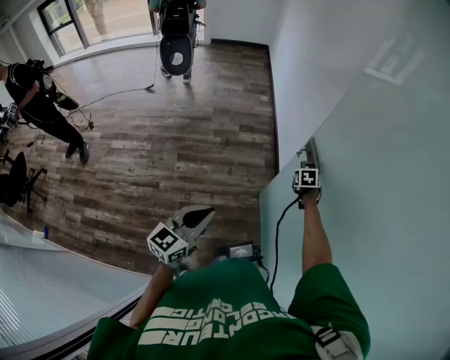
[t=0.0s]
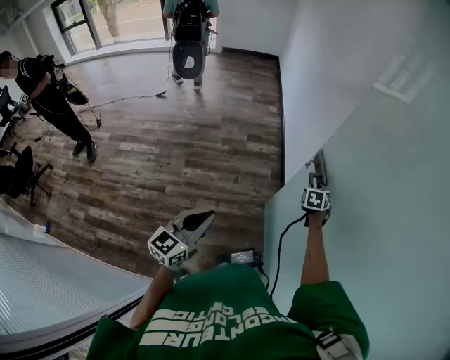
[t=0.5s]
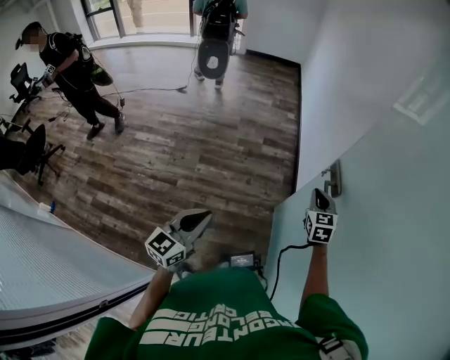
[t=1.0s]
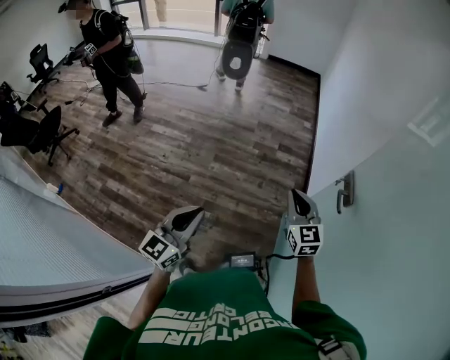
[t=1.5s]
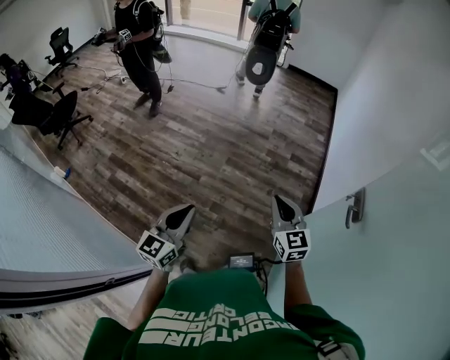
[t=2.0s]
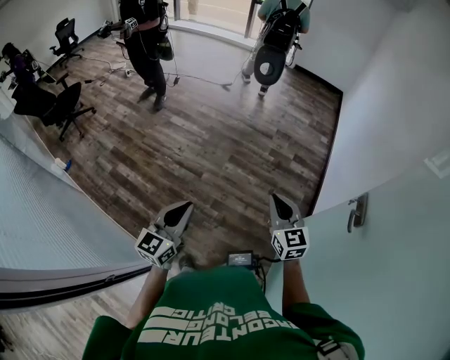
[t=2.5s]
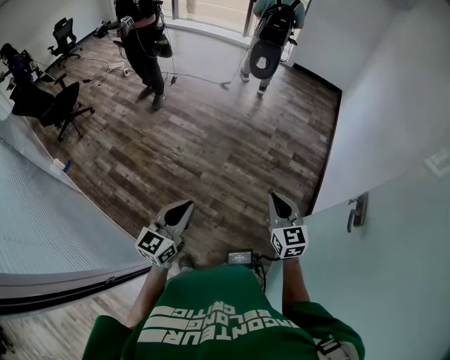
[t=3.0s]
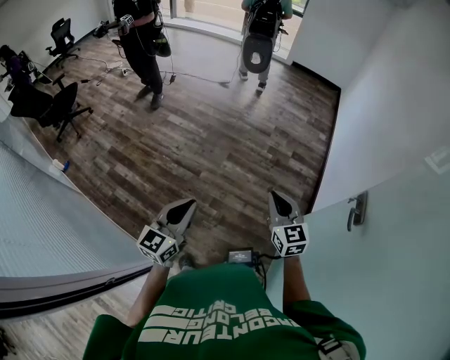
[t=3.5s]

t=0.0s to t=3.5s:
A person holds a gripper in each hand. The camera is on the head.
t=0.0s to t=2.0s: The left gripper moves approximately 25 cm, and swivels approximately 40 degrees. Meanwhile the right gripper shifts by approximately 50 cm, tips its fingers upward by approximately 40 degrees, and opens and closes again.
t=2.0s to t=3.5s: There are only small adjustments of the grippers.

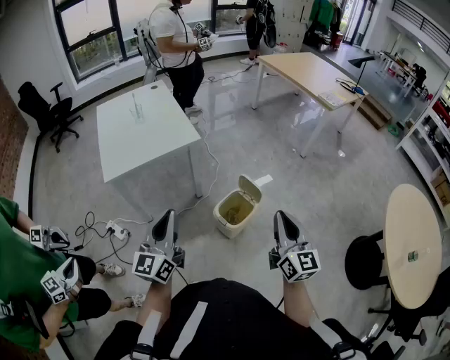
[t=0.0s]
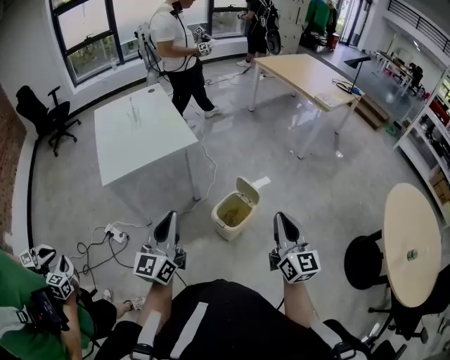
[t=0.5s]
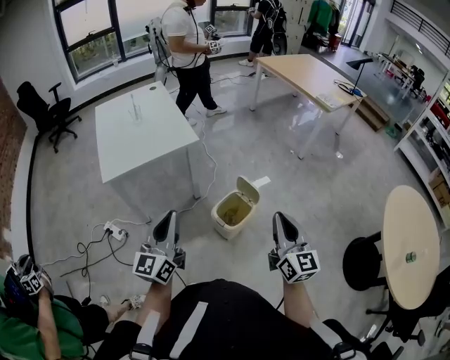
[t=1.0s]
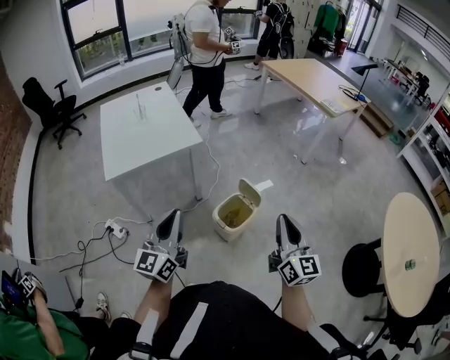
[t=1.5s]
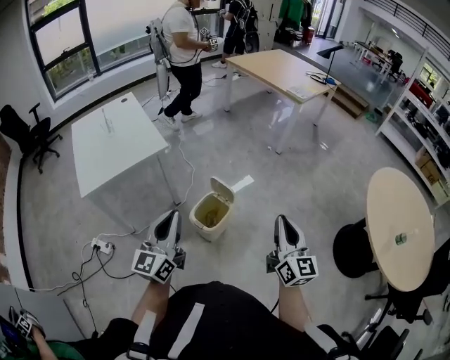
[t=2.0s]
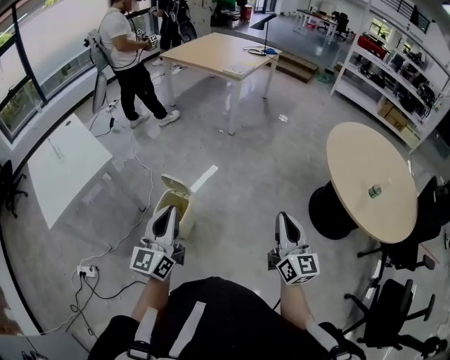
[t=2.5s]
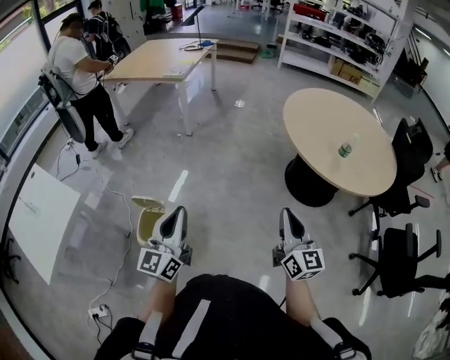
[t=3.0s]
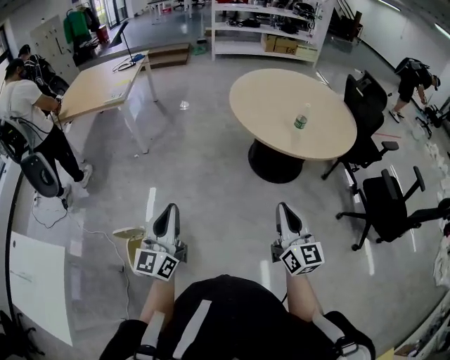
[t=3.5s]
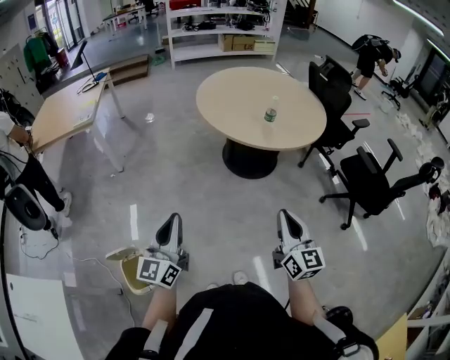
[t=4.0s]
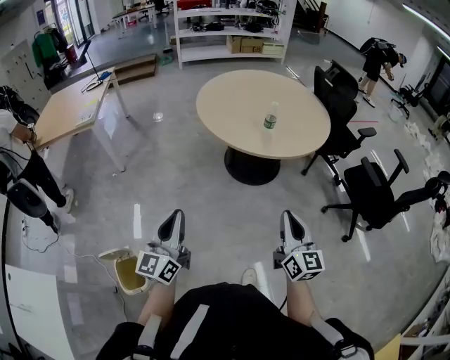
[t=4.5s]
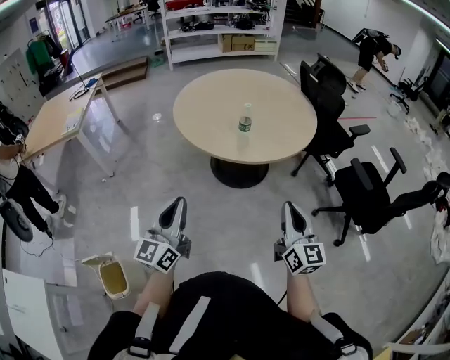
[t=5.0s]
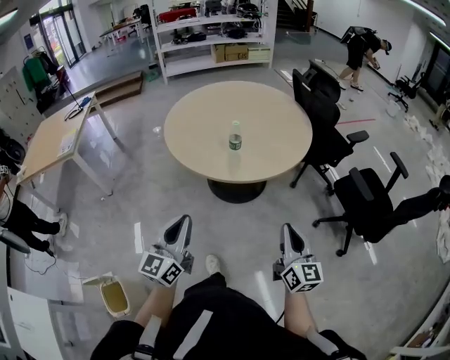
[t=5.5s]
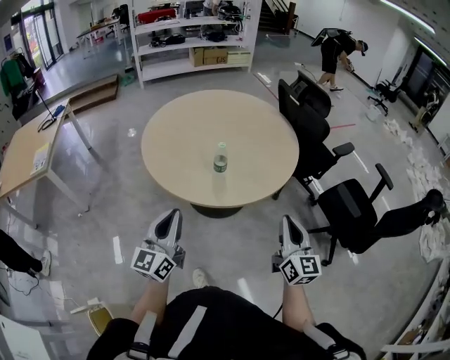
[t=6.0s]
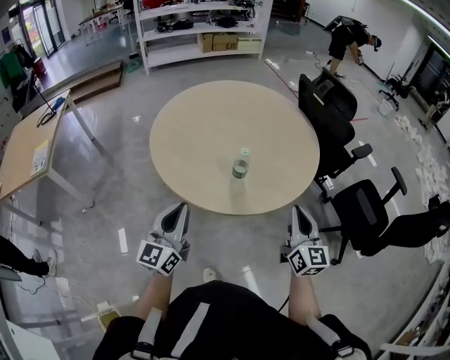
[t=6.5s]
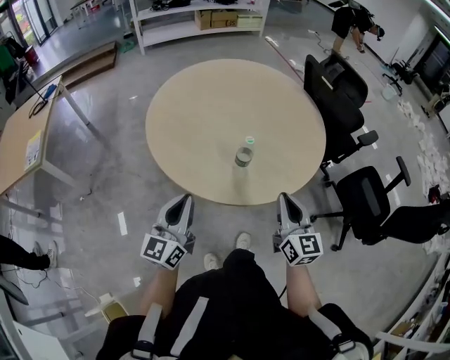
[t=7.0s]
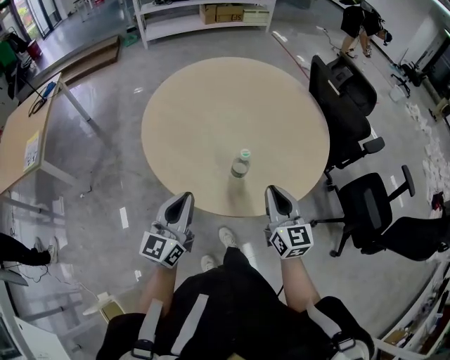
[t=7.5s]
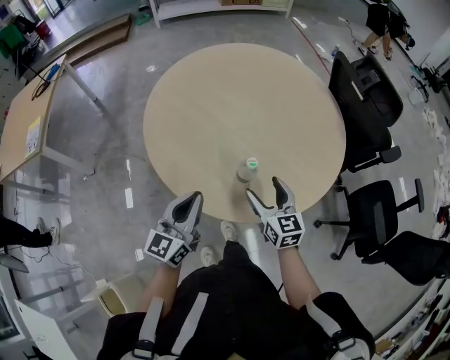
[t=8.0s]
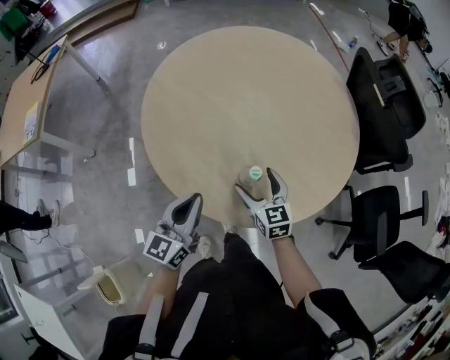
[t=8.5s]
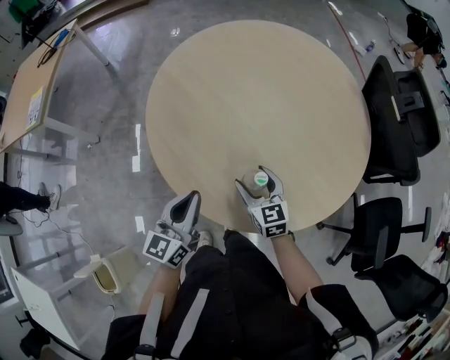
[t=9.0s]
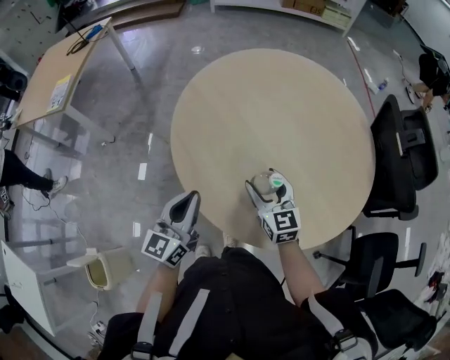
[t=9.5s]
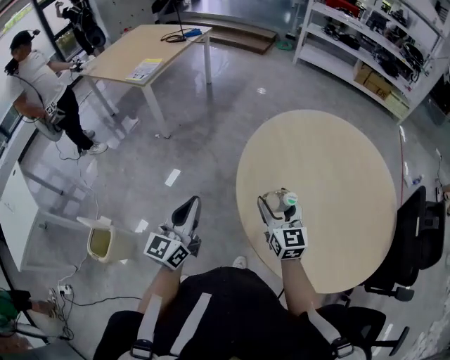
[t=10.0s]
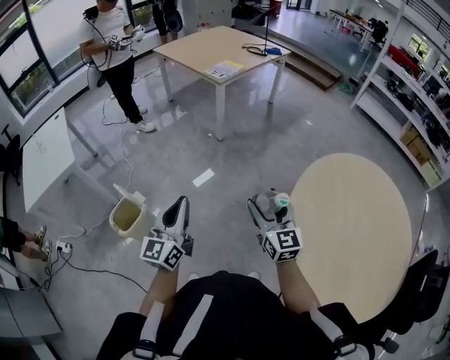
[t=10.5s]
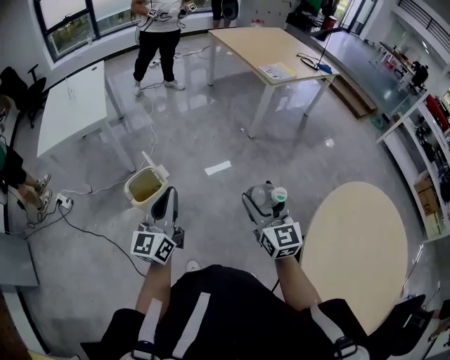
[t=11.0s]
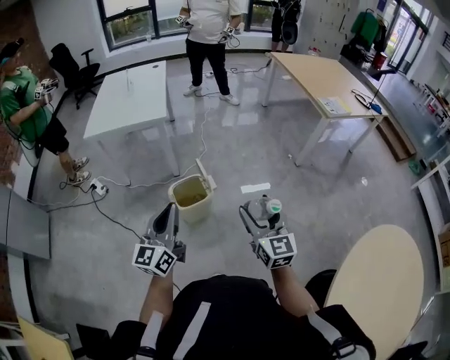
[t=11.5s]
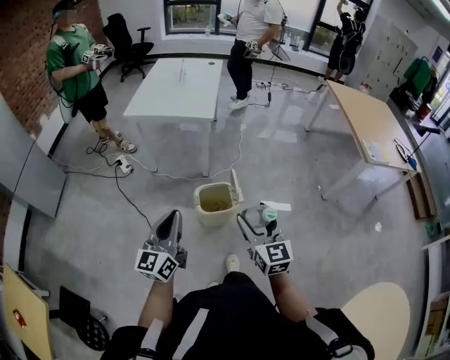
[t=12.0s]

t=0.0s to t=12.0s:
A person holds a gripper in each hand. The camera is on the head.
t=0.0s to t=2.0s: The two grippers go about 10 cm to the right.
t=2.0s to t=4.0s: The left gripper shifts by some 40 cm, and turns by about 60 degrees. The right gripper ends up about 35 cm from where it was, and swivels about 60 degrees.
t=4.0s to t=6.0s: Both grippers move forward and to the right, roughly 40 cm.
t=6.0s to t=8.0s: The left gripper shifts approximately 20 cm forward, while the right gripper shifts approximately 35 cm forward, to the left and downward, rotates approximately 30 degrees, and opens up.
t=8.0s to t=10.0s: The left gripper shifts by approximately 20 cm, and swivels some 40 degrees. The right gripper shifts by approximately 25 cm, and rotates some 40 degrees.
t=10.0s to t=12.0s: Both grippers are carried roughly 70 cm. The right gripper turns by some 70 degrees. The left gripper turns by roughly 80 degrees.

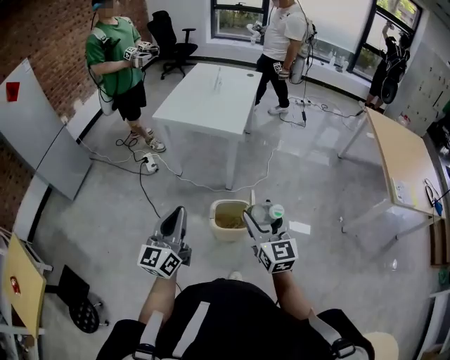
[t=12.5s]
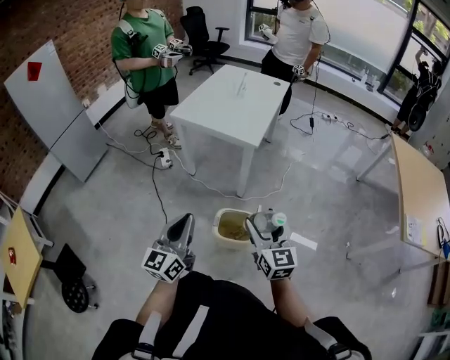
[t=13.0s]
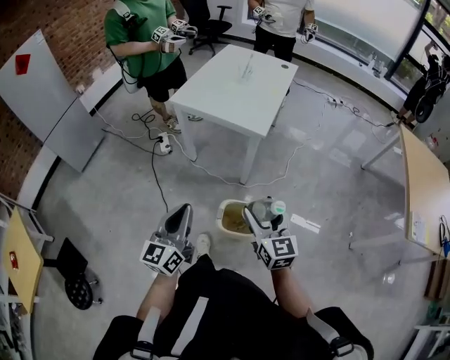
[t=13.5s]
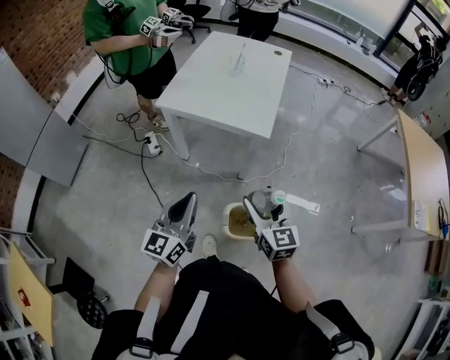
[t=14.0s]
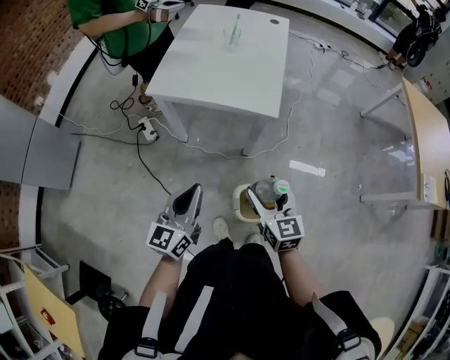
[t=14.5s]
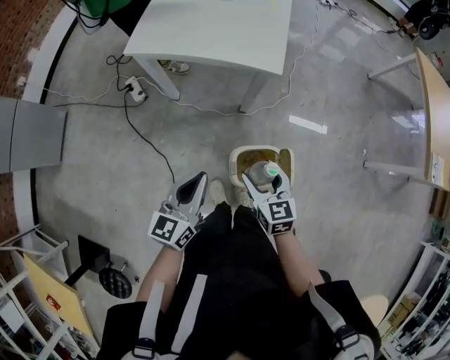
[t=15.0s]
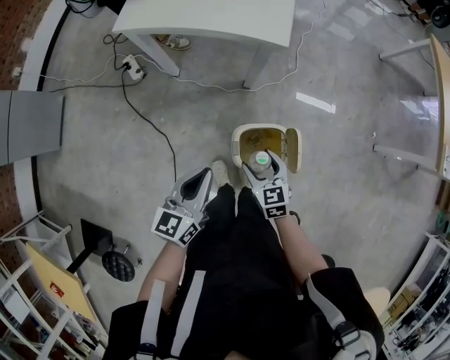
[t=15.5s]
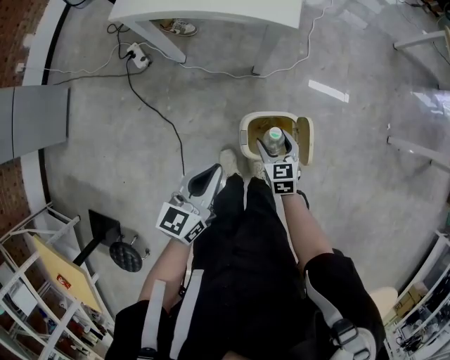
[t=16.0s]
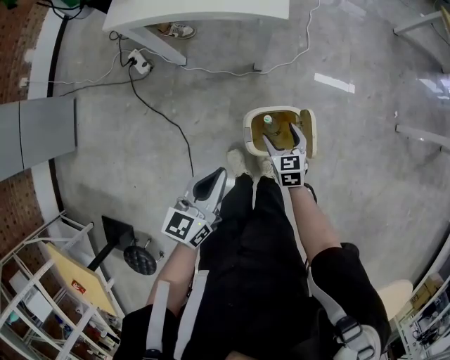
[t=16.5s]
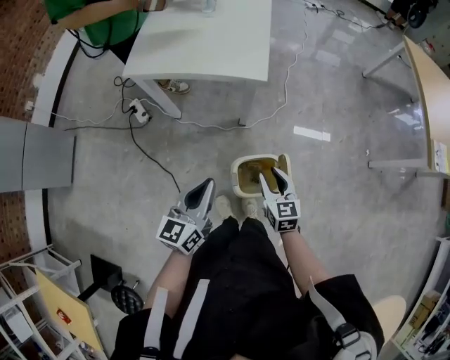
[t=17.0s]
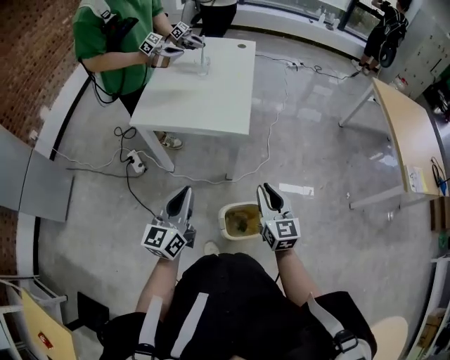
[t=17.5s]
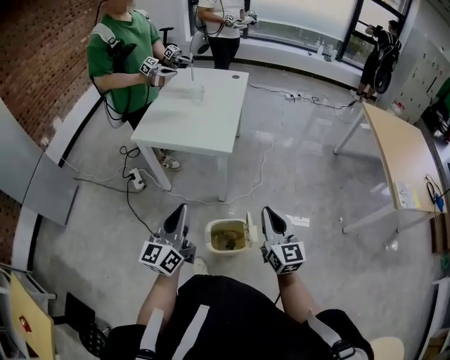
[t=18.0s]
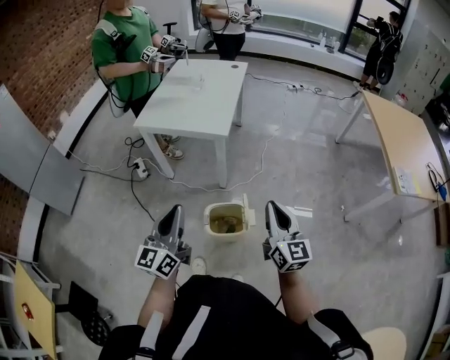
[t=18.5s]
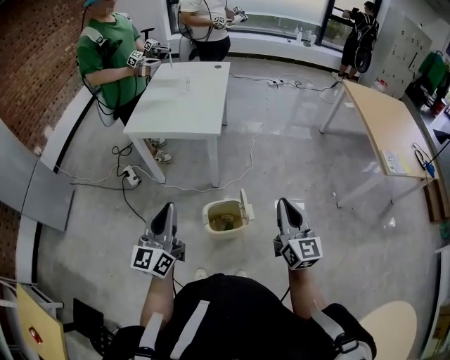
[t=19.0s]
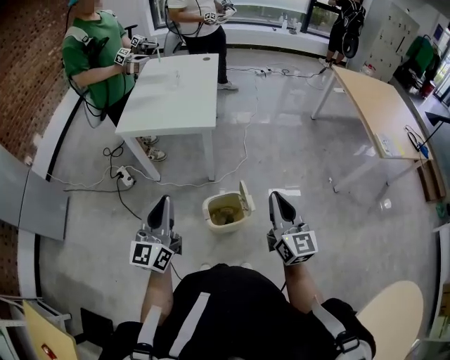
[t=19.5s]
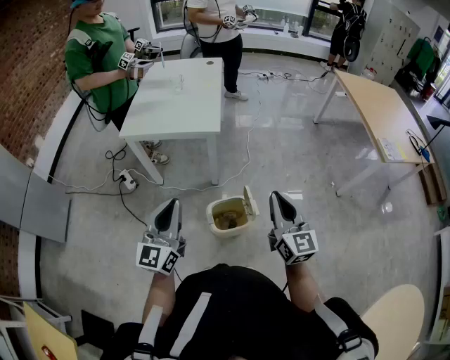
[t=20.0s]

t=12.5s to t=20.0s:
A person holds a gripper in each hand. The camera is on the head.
t=12.5s to t=14.5s: The left gripper moves forward, approximately 25 cm. Meanwhile the right gripper goes roughly 30 cm forward, to the left and downward.
t=14.5s to t=16.5s: The right gripper moves downward, some 30 cm, and turns by about 20 degrees, while the left gripper heads downward, backward and to the right, covering roughly 20 cm, and rotates roughly 20 degrees.
t=16.5s to t=18.0s: The right gripper heads upward, covering roughly 40 cm, angles its fingers upward, by approximately 40 degrees, and closes up. Meanwhile the left gripper goes roughly 20 cm upward, and angles its fingers upward, by roughly 30 degrees.
t=18.0s to t=20.0s: Both grippers move backward, roughly 10 cm.

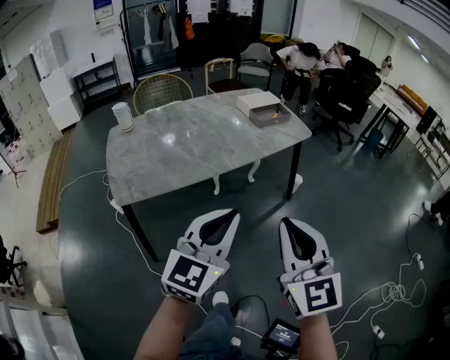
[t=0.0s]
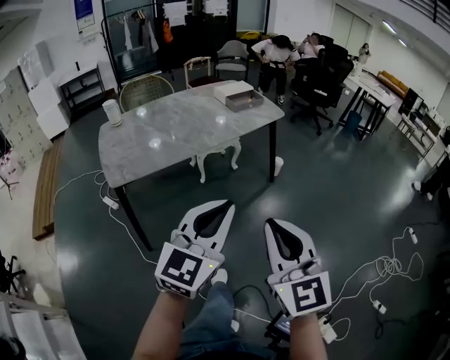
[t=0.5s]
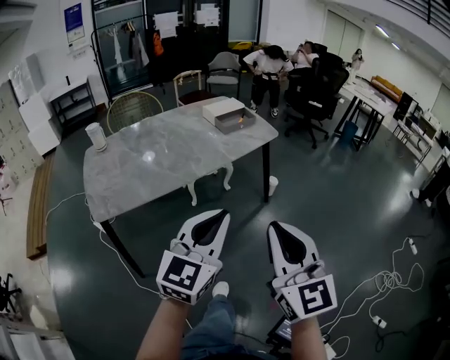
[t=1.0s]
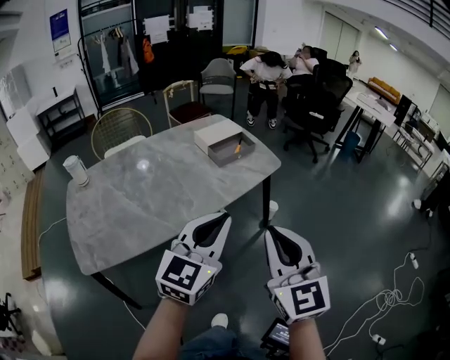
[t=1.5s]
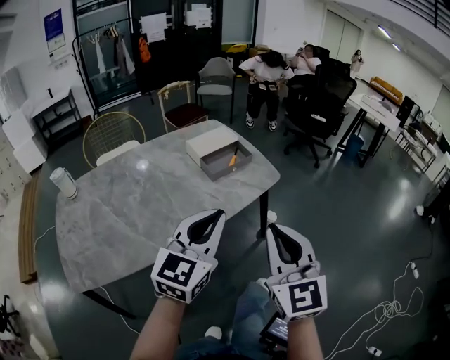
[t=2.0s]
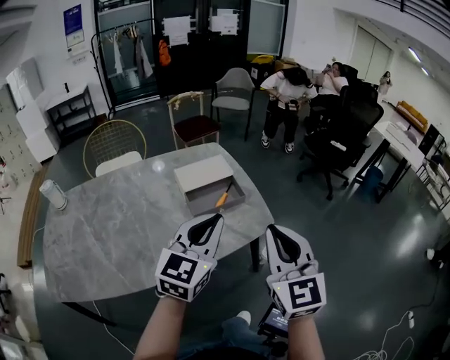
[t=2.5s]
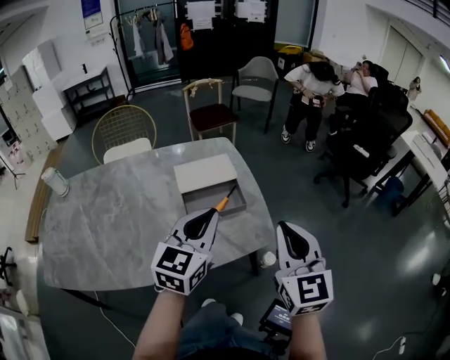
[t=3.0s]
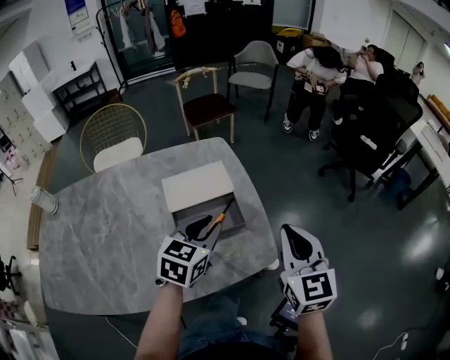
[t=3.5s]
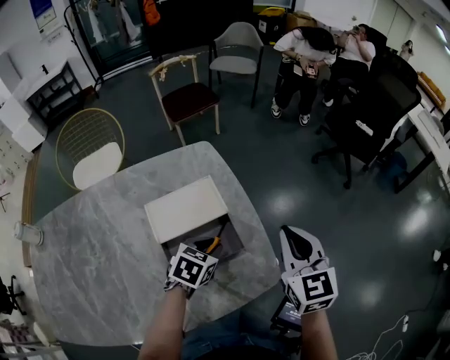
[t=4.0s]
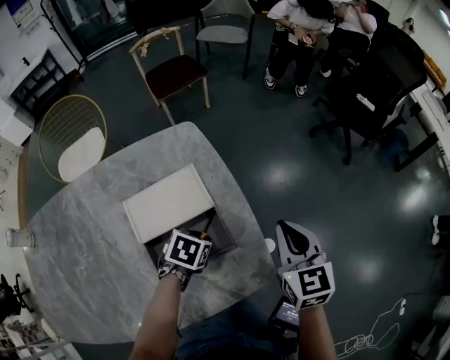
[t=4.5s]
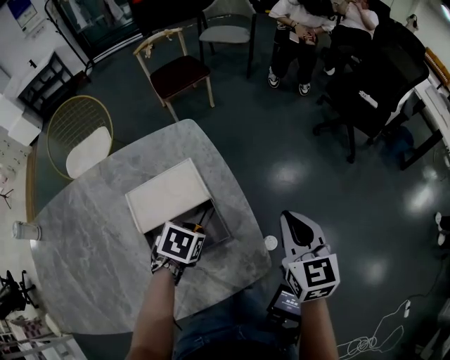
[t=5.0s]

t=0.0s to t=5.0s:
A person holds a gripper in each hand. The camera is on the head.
t=0.0s to t=2.5s: The two grippers travel together, forward, roughly 50 cm.
t=2.5s to t=5.0s: The right gripper moves forward and downward, some 40 cm, and rotates roughly 30 degrees, while the left gripper is displaced downward and forward by some 40 cm, and points its fingers roughly 70 degrees further downward.
